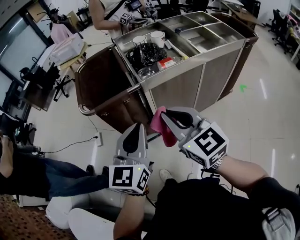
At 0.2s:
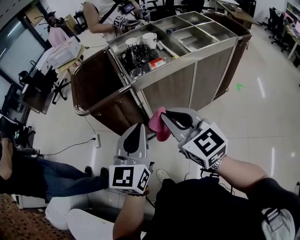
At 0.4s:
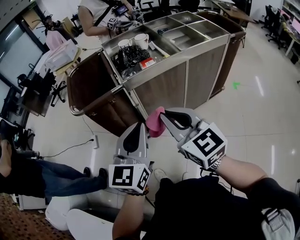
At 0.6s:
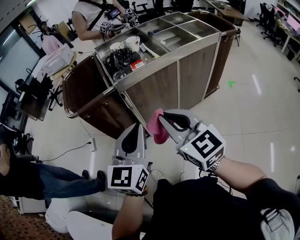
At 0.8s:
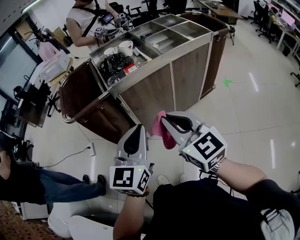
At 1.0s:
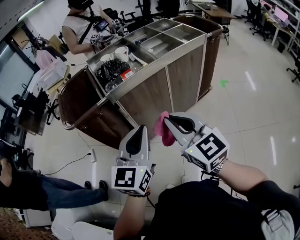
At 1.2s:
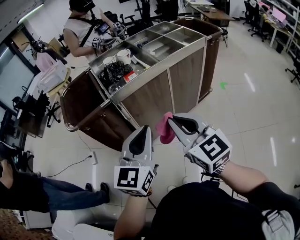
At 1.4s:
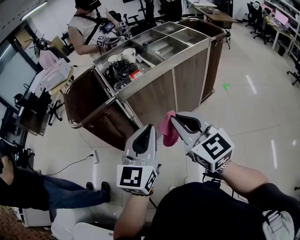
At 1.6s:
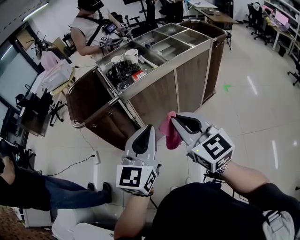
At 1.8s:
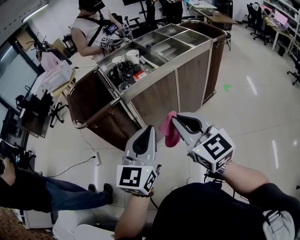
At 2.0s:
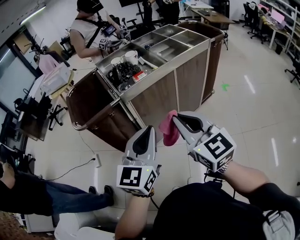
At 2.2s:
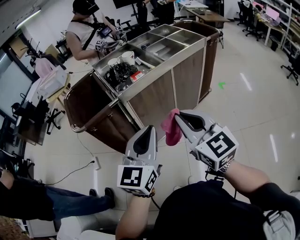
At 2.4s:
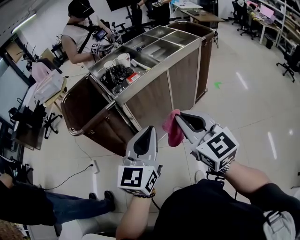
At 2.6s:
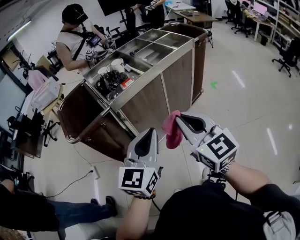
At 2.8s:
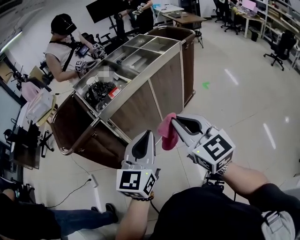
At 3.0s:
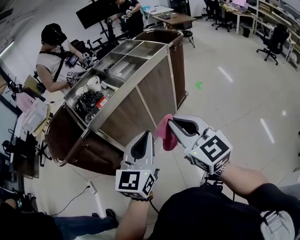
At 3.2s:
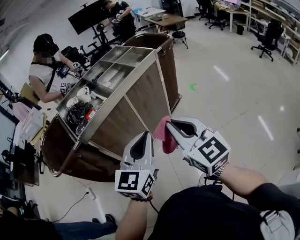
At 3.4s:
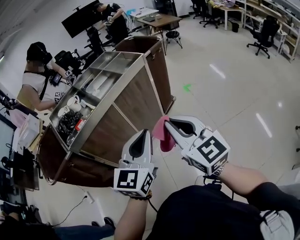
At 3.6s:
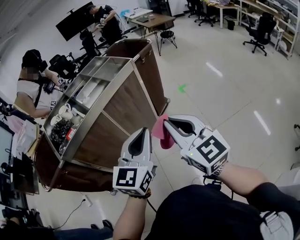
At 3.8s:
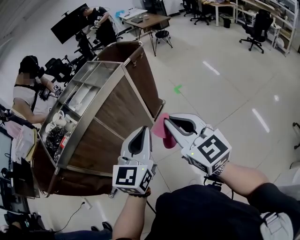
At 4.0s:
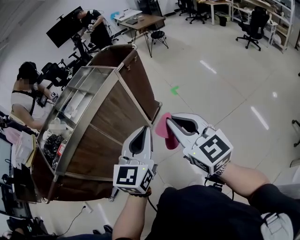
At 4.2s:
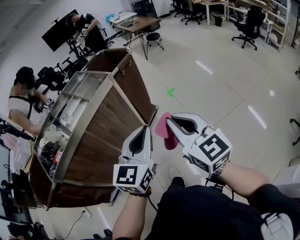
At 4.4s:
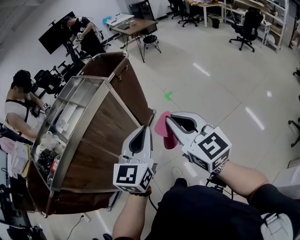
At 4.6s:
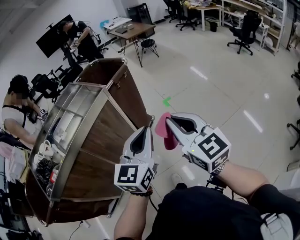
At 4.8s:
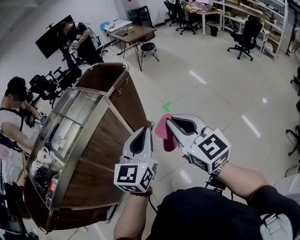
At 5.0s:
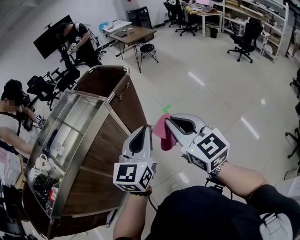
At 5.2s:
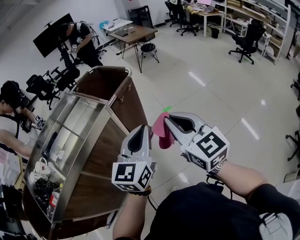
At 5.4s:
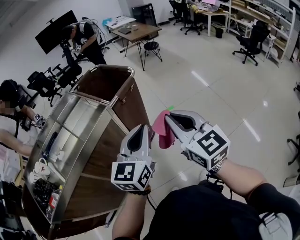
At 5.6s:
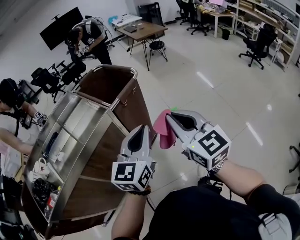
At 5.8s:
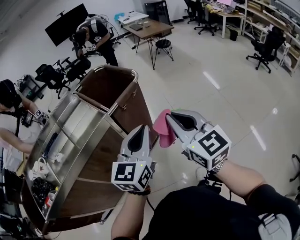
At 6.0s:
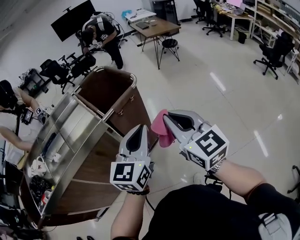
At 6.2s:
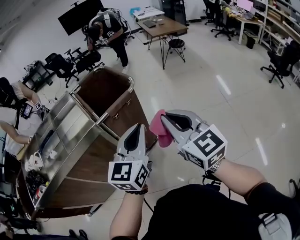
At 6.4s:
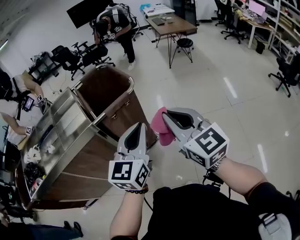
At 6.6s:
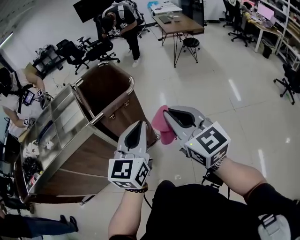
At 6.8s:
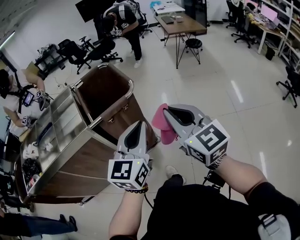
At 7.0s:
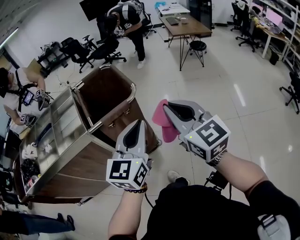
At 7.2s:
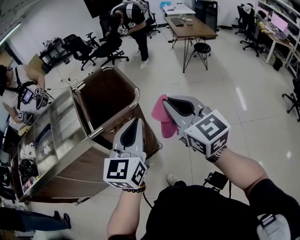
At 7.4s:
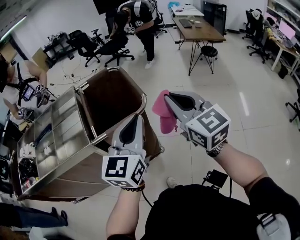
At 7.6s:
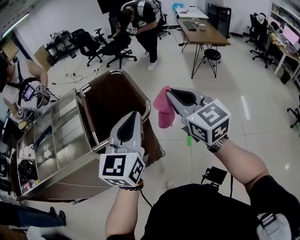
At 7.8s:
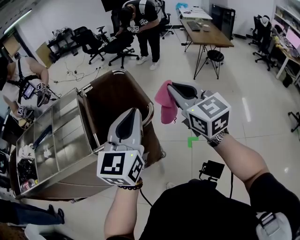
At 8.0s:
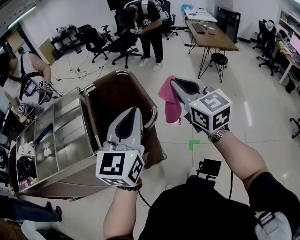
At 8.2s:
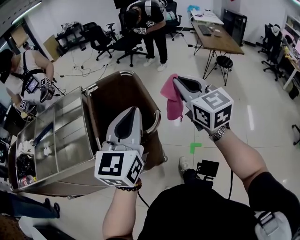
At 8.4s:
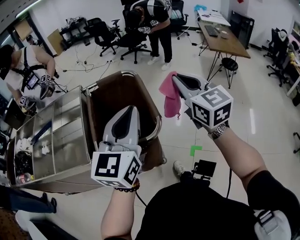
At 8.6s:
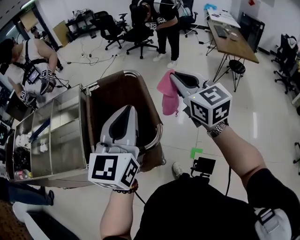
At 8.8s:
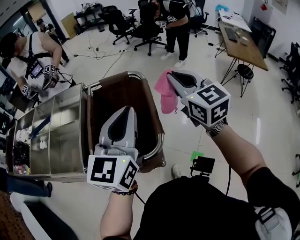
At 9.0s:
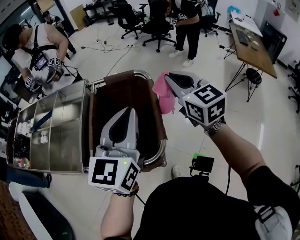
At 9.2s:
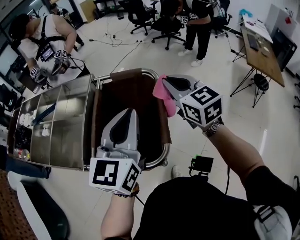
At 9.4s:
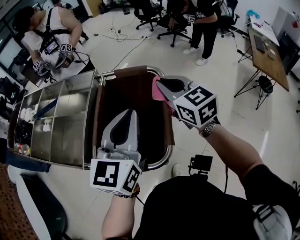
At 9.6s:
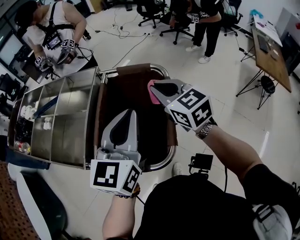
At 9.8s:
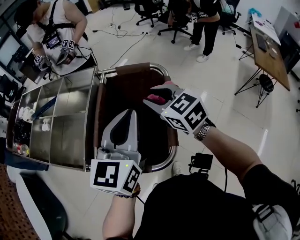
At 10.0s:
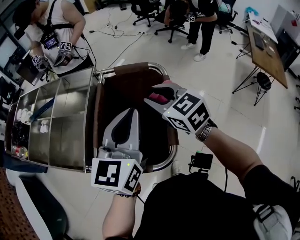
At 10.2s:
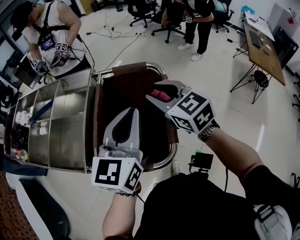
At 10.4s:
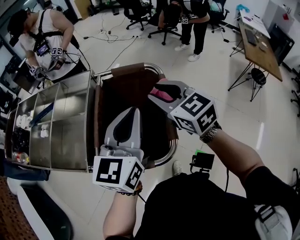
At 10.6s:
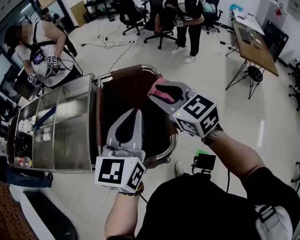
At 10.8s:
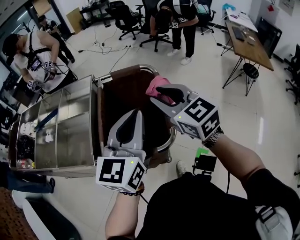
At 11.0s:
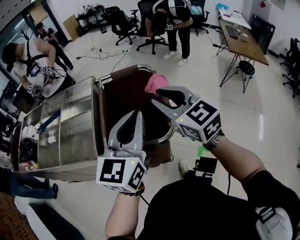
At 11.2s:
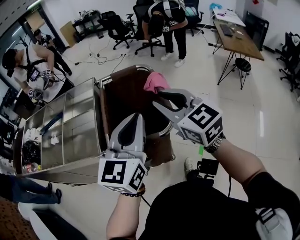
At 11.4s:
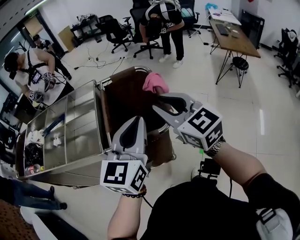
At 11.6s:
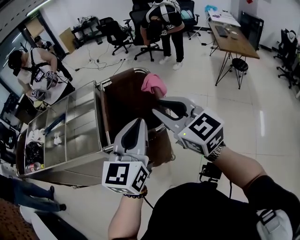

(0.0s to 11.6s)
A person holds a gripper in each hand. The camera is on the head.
0.0s - 1.4s: The two grippers go some 20 cm to the right, backward and upward.
1.4s - 2.8s: The right gripper is displaced to the right by approximately 5 cm.
2.8s - 4.4s: Both grippers move to the right and forward, approximately 40 cm.
4.4s - 5.8s: Both grippers travel together forward, about 25 cm.
5.8s - 7.2s: The grippers both shift forward and to the right by approximately 30 cm. The left gripper swivels about 20 degrees. The right gripper changes its angle by roughly 20 degrees.
7.2s - 8.8s: The grippers both shift forward by about 30 cm. The left gripper turns by roughly 20 degrees.
8.8s - 10.2s: The right gripper moves to the left, forward and downward, about 20 cm, turns by approximately 20 degrees, and opens its fingers; the left gripper is displaced forward and downward by roughly 10 cm.
10.2s - 11.6s: Both grippers move backward, about 25 cm. The right gripper swivels roughly 20 degrees.

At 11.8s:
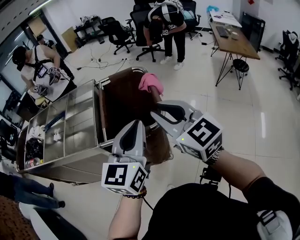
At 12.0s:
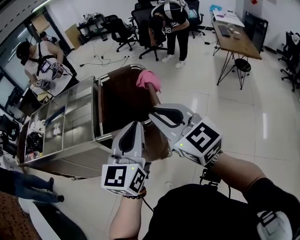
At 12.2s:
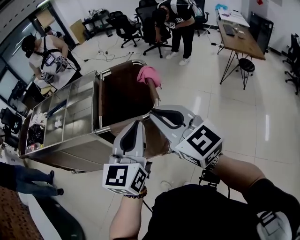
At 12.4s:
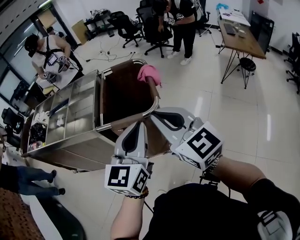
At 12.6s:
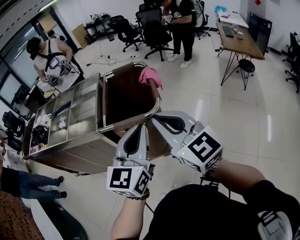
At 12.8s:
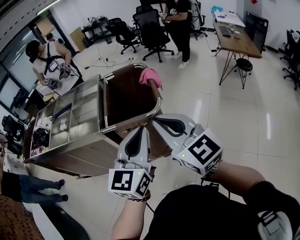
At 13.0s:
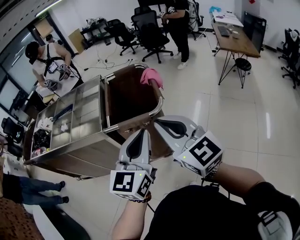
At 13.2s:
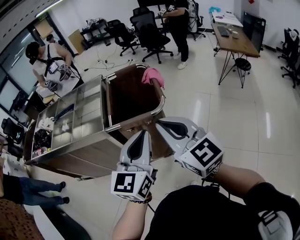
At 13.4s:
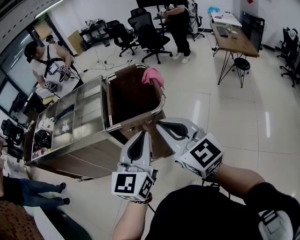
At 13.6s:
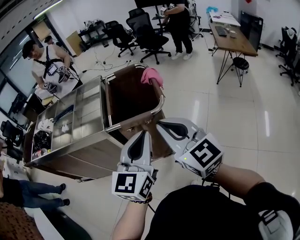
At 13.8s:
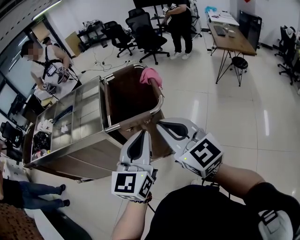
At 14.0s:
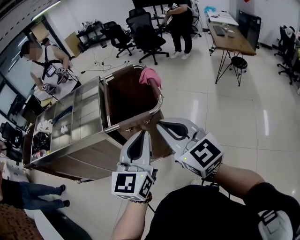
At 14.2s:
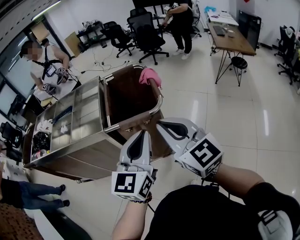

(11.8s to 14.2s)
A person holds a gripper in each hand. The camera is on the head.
11.8s - 13.0s: The two grippers go about 10 cm backward.
13.0s - 14.2s: There are only small adjustments of the grippers.

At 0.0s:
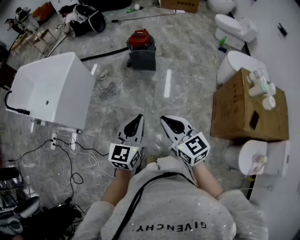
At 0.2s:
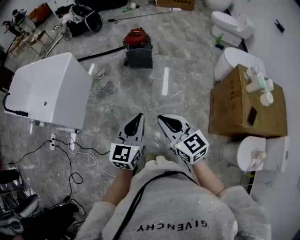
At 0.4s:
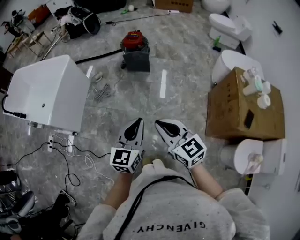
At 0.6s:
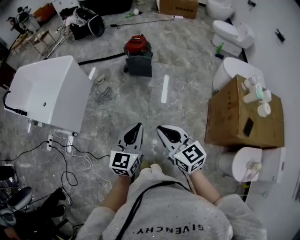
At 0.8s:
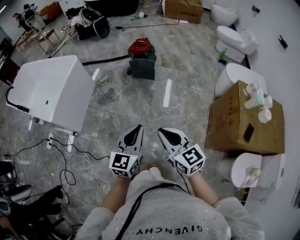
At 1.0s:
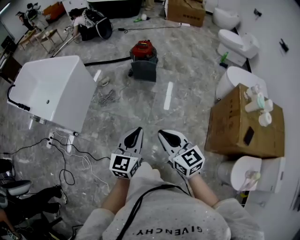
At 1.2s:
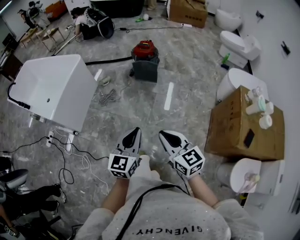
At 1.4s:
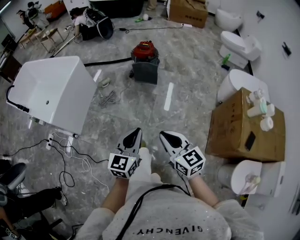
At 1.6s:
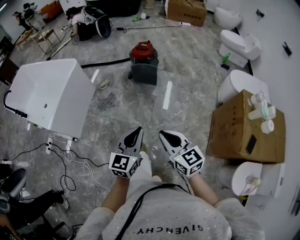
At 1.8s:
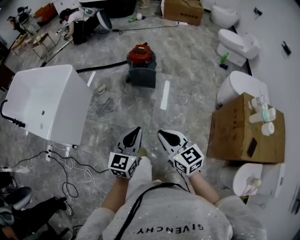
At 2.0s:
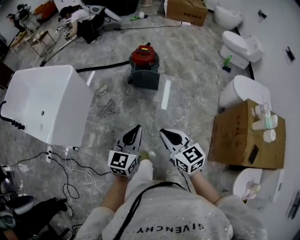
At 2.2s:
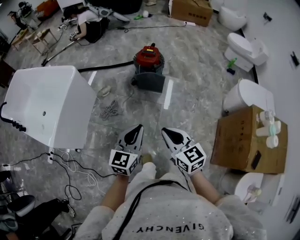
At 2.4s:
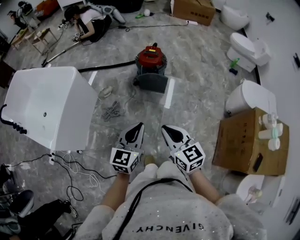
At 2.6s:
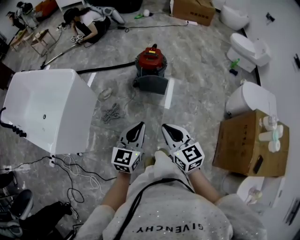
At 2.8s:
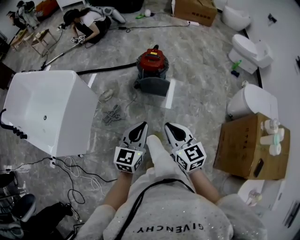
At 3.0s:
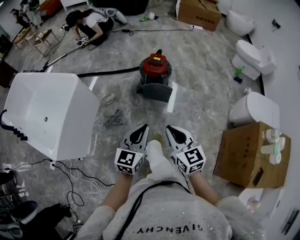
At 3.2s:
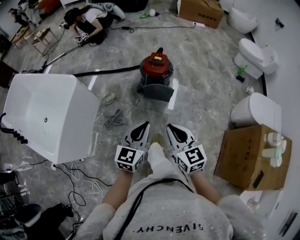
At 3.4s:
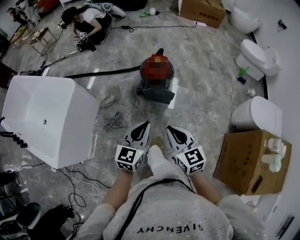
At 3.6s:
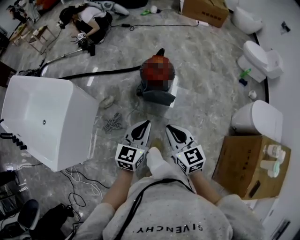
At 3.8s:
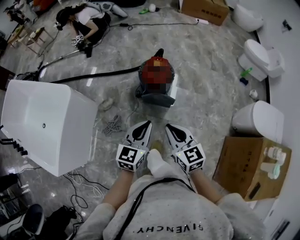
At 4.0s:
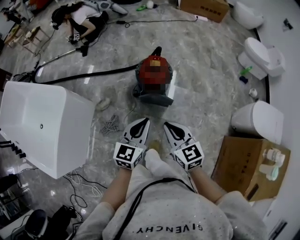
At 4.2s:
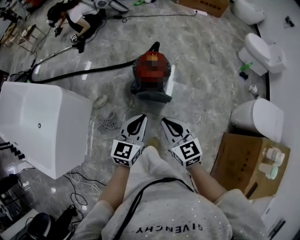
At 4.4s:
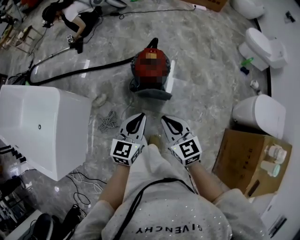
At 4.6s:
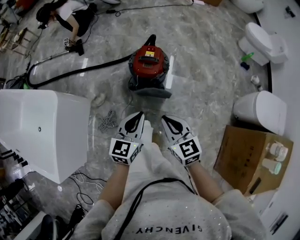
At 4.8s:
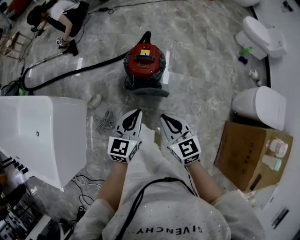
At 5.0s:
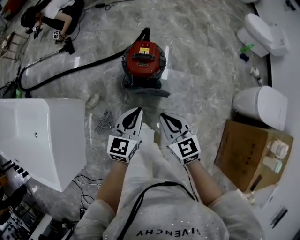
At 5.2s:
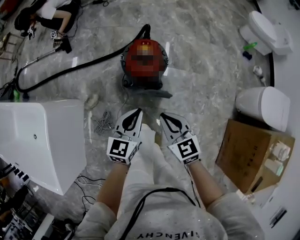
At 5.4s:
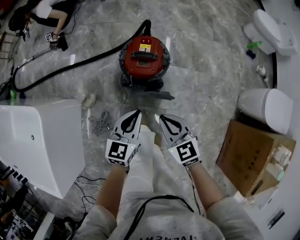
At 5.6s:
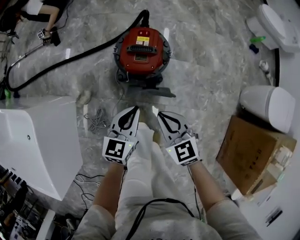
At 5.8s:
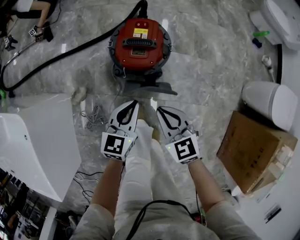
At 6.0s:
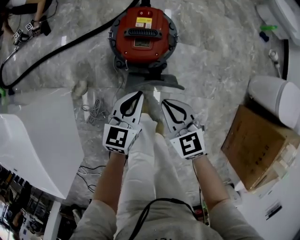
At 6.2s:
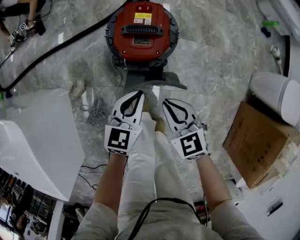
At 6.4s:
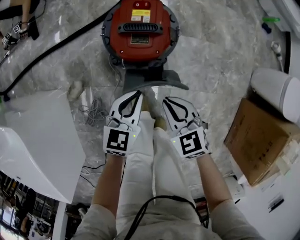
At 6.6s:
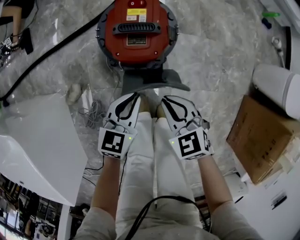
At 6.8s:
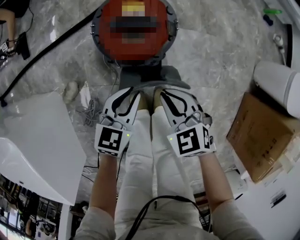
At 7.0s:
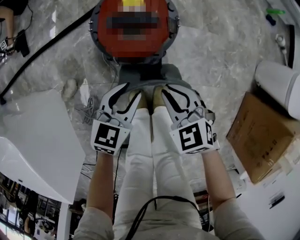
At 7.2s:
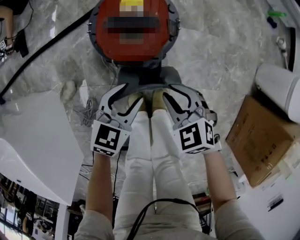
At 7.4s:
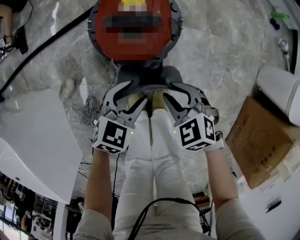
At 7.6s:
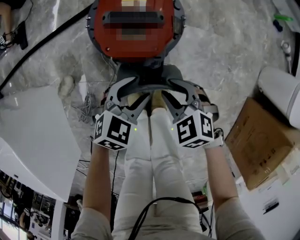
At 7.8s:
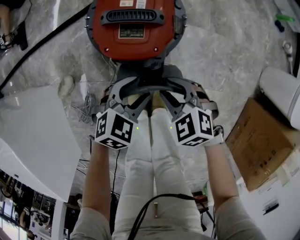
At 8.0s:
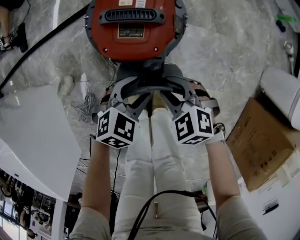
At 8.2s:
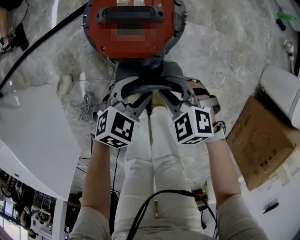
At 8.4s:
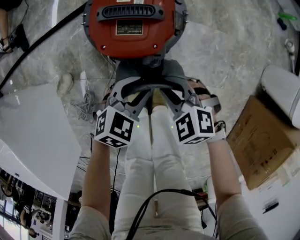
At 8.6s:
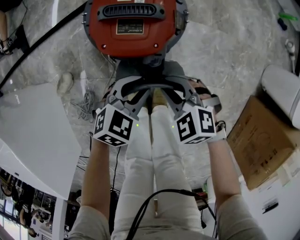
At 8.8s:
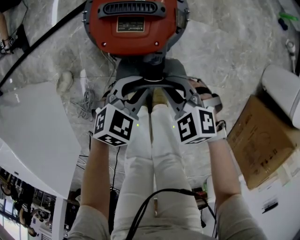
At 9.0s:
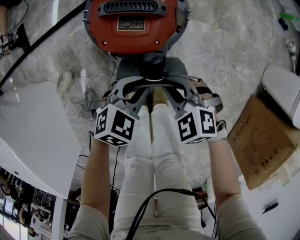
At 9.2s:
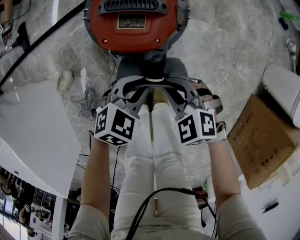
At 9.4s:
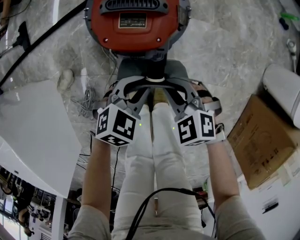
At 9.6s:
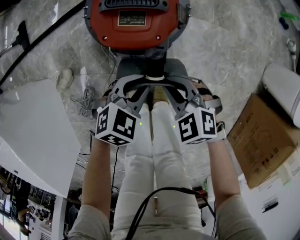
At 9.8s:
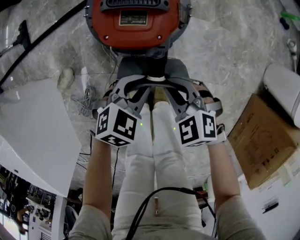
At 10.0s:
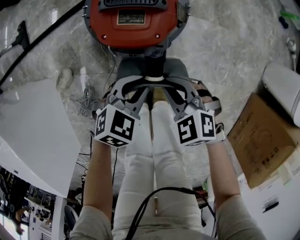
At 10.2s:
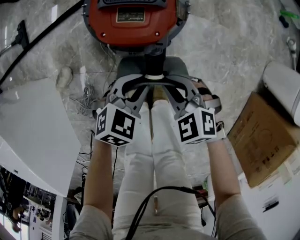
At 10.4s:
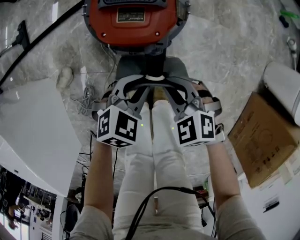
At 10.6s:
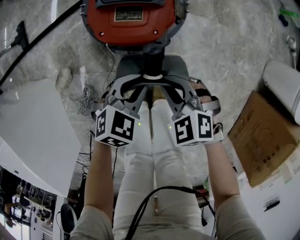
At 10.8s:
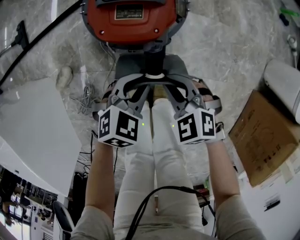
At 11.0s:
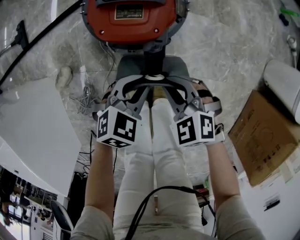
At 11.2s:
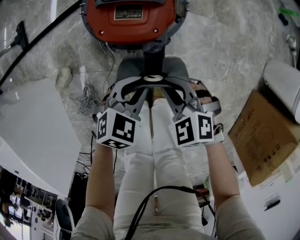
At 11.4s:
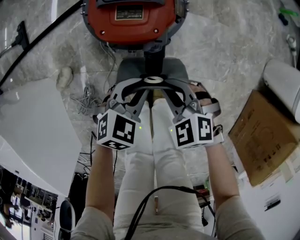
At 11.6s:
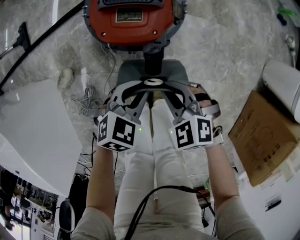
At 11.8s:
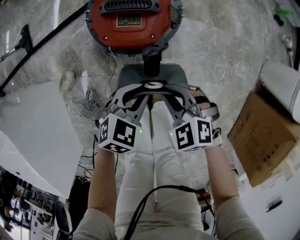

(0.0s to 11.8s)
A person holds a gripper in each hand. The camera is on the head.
0.0s - 1.4s: The grippers move only a little.
1.4s - 3.0s: The grippers both shift forward by approximately 35 cm.
3.0s - 4.4s: The two grippers go some 25 cm forward.
4.4s - 6.0s: The two grippers go approximately 30 cm downward and forward.
6.0s - 7.4s: The grippers both shift downward by some 15 cm. The right gripper rotates some 20 degrees, and opens its fingers. The left gripper rotates approximately 30 degrees, and opens its fingers.
7.4s - 8.8s: The left gripper closes its fingers.
8.8s - 11.8s: The grippers stay close to where they were, moving slightly.
